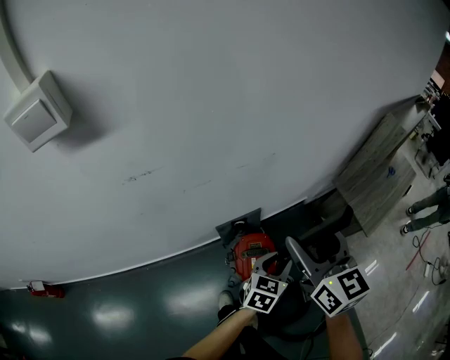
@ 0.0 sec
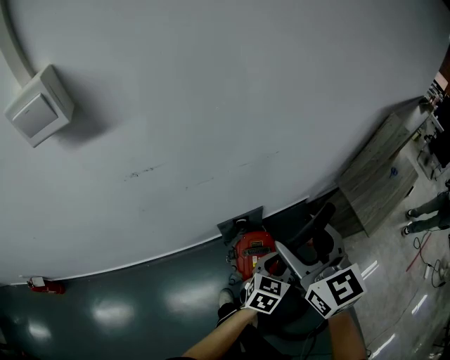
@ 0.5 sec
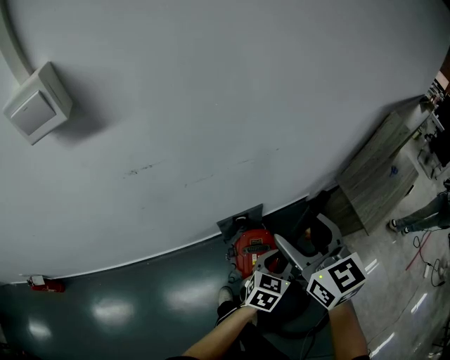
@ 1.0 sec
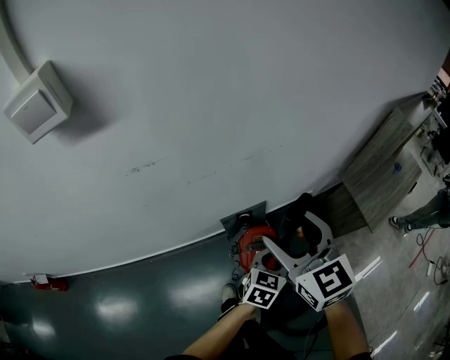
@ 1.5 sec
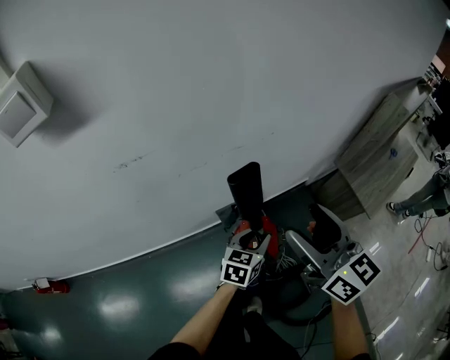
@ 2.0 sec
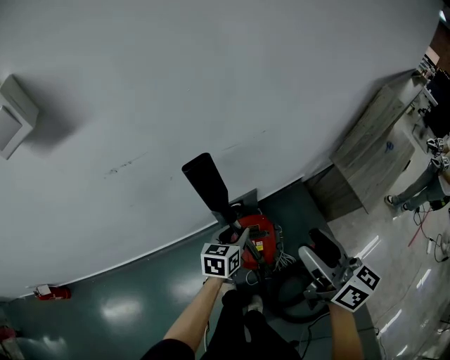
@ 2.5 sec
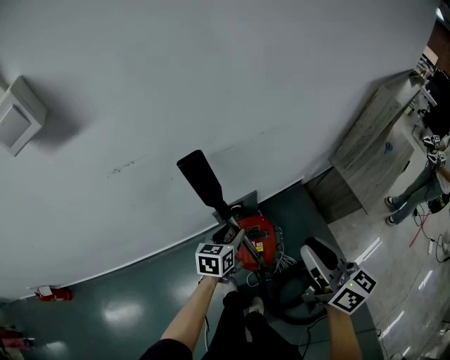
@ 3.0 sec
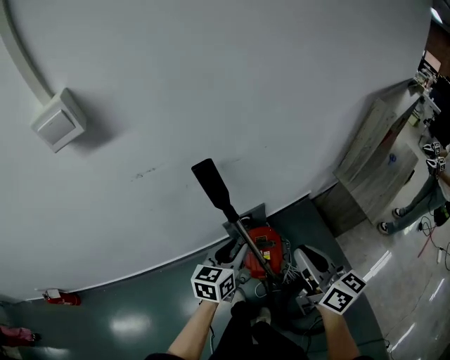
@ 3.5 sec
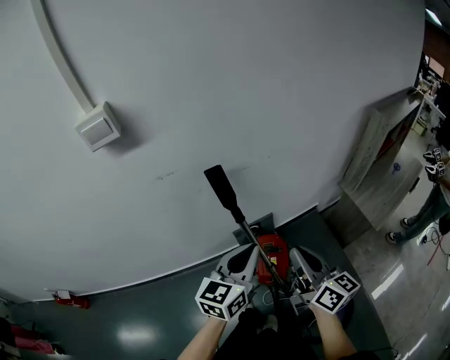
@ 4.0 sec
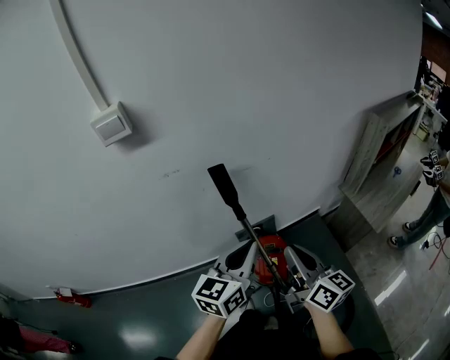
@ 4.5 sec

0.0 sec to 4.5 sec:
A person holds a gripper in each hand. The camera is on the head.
0.0 sec to 2.0 sec: The left gripper goes approximately 5 cm to the left.
2.0 sec to 4.5 sec: The left gripper heads upward and backward, covering roughly 30 cm, swivels approximately 30 degrees, and closes. The right gripper goes some 15 cm backward, turns by about 20 degrees, and closes.

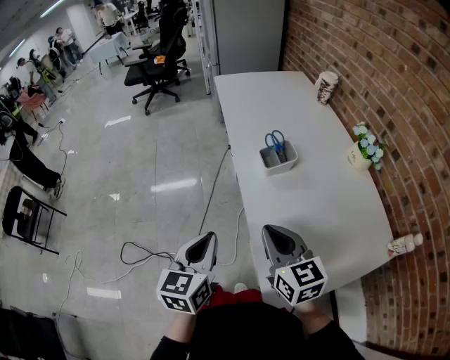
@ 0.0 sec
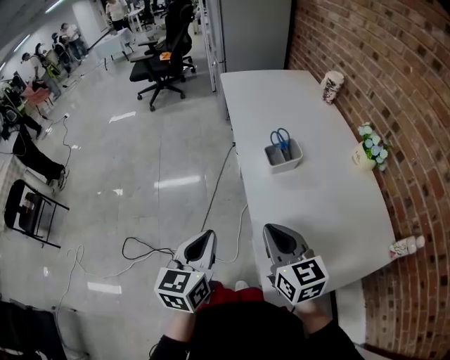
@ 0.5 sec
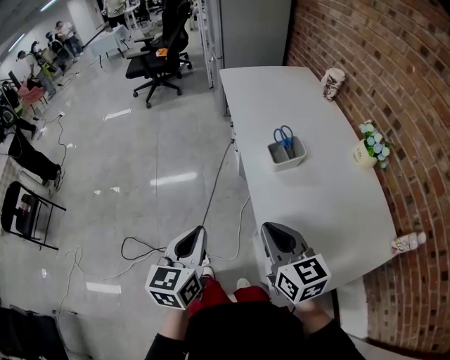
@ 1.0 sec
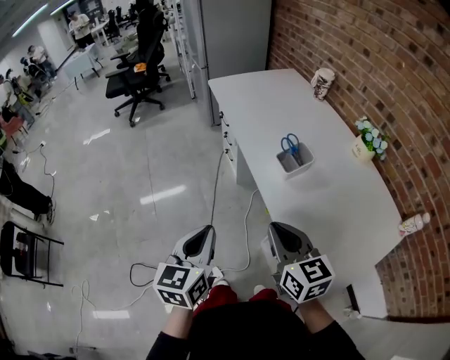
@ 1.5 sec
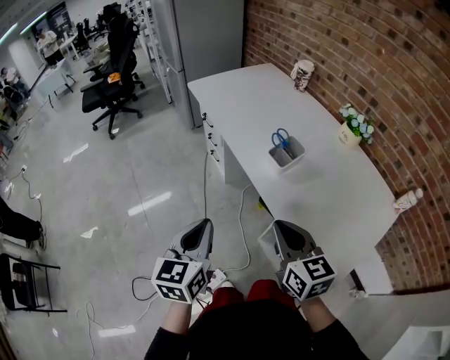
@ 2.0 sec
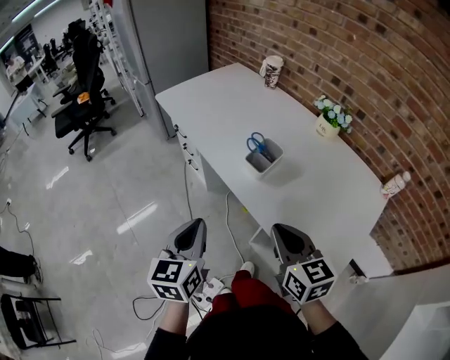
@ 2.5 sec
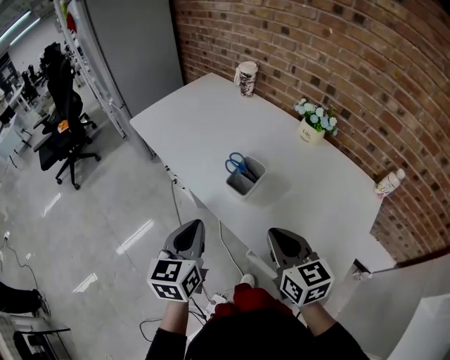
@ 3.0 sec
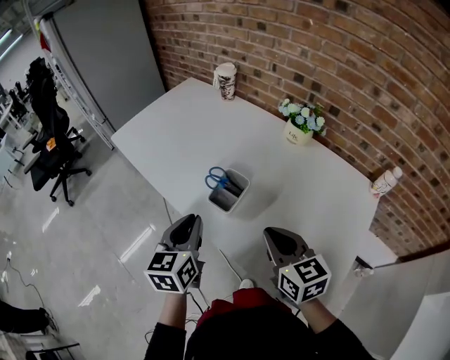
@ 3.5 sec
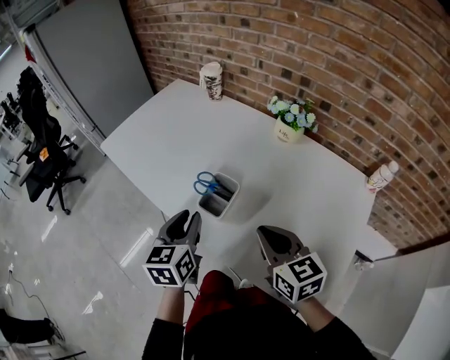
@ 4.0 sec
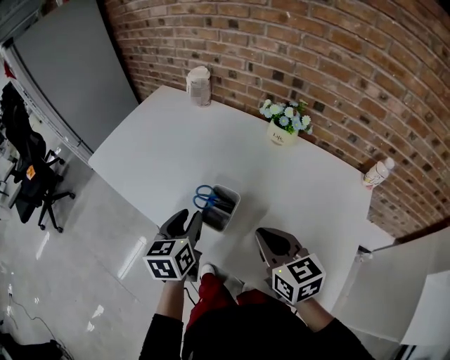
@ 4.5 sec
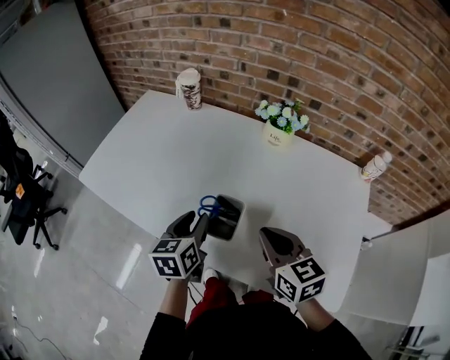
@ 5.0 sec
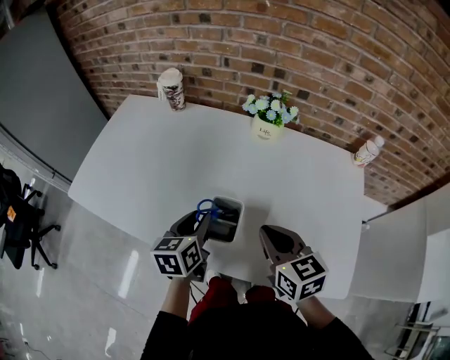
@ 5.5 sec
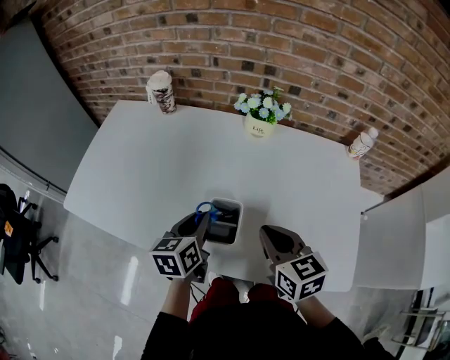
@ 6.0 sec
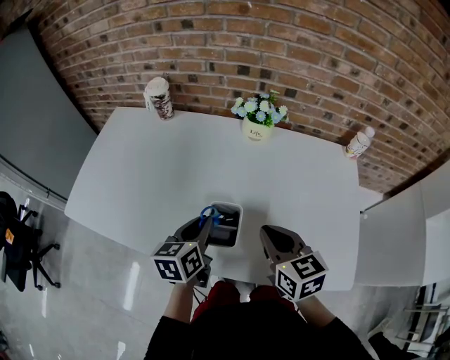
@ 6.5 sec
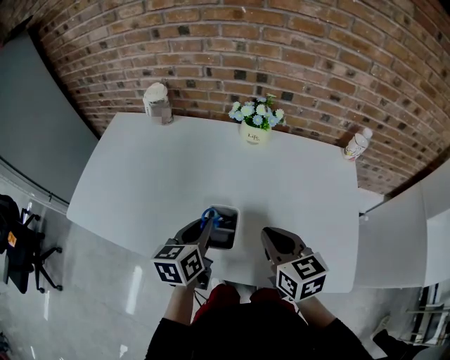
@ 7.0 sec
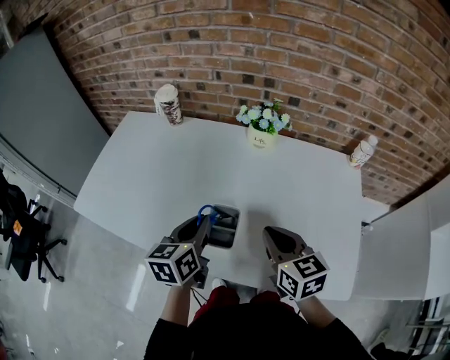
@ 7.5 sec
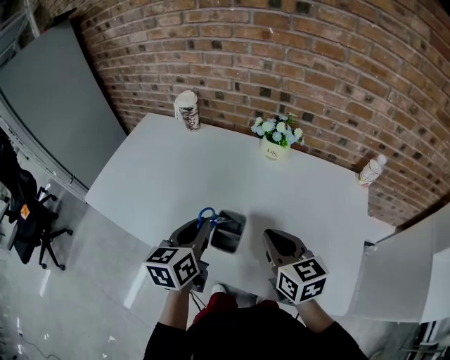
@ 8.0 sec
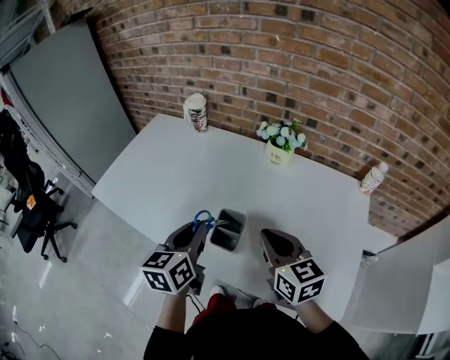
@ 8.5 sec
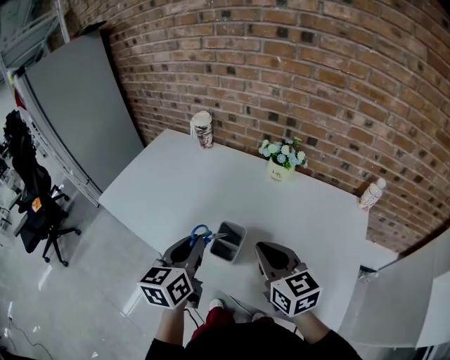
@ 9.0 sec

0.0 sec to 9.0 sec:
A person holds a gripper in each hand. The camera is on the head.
0.0 sec to 2.0 sec: The right gripper moves to the left, approximately 10 cm, and swivels approximately 20 degrees. Meanwhile the left gripper is displaced to the left and forward by some 15 cm.
2.0 sec to 4.5 sec: The left gripper goes some 35 cm forward and to the right, swivels approximately 30 degrees, and opens its fingers; the right gripper is displaced forward and to the right by roughly 20 cm, and rotates approximately 20 degrees.
4.5 sec to 7.0 sec: The left gripper changes place by roughly 5 cm, turns by approximately 30 degrees, and closes up. Meanwhile the right gripper turns by roughly 20 degrees.
7.0 sec to 9.0 sec: The left gripper travels upward and backward by about 10 cm, and changes its angle by roughly 20 degrees, while the right gripper moves upward, approximately 5 cm, and swivels some 20 degrees.

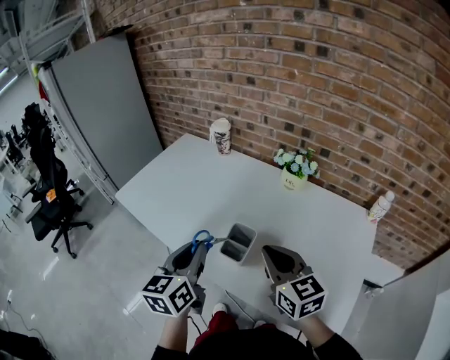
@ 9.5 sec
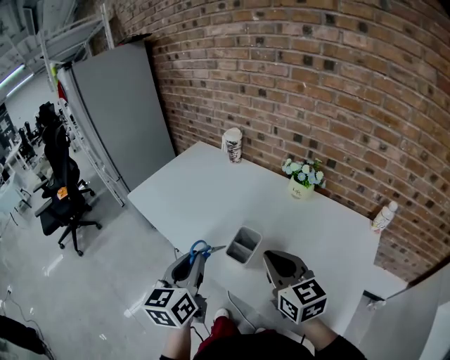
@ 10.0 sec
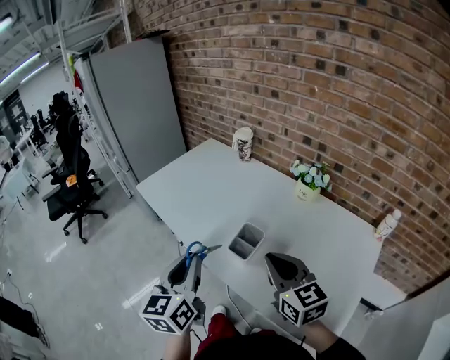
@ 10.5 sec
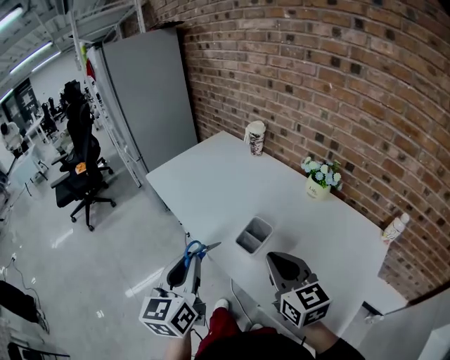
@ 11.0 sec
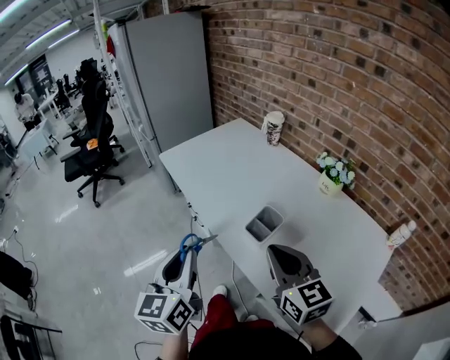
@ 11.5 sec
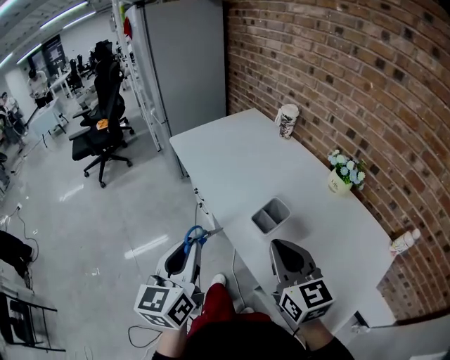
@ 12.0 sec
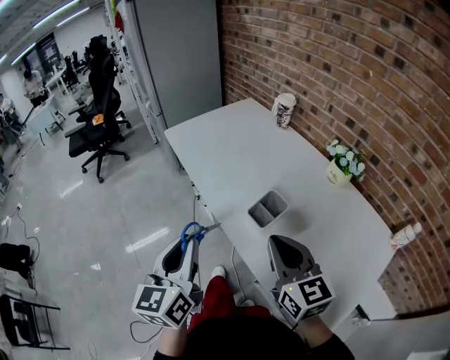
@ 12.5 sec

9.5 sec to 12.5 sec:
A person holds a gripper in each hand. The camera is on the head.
9.5 sec to 11.0 sec: The right gripper moves some 5 cm; the left gripper is displaced backward and to the left by approximately 10 cm, and swivels approximately 20 degrees.
11.0 sec to 12.5 sec: The grippers move only a little.

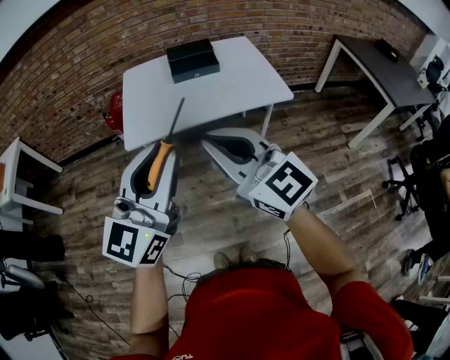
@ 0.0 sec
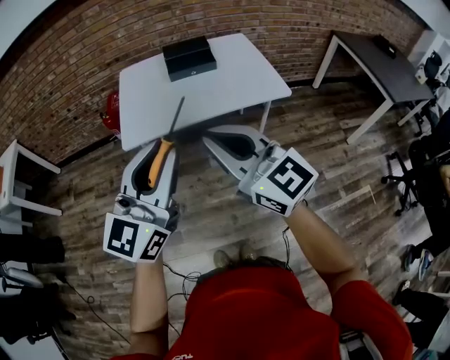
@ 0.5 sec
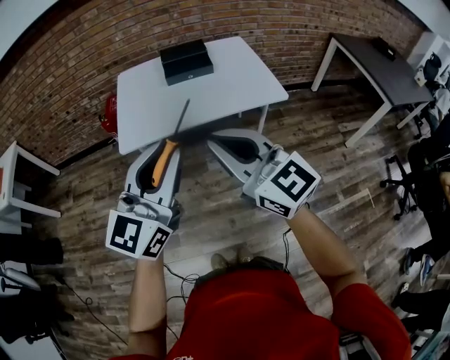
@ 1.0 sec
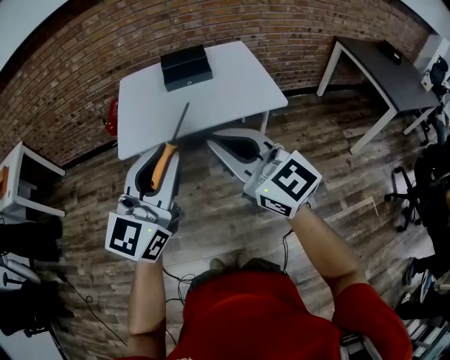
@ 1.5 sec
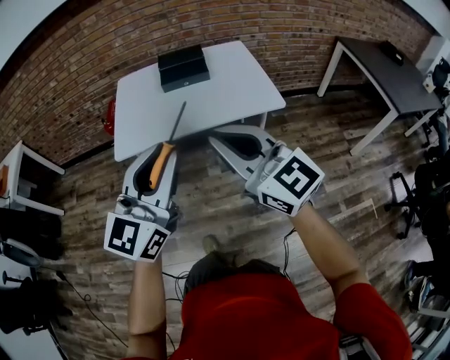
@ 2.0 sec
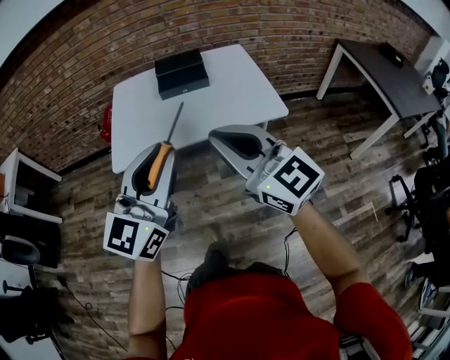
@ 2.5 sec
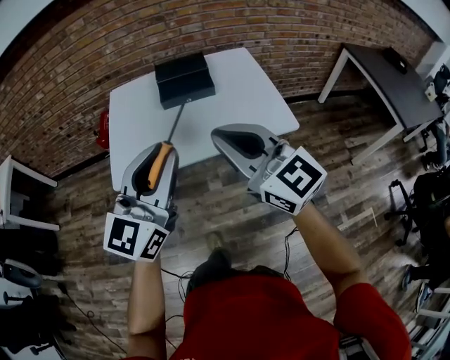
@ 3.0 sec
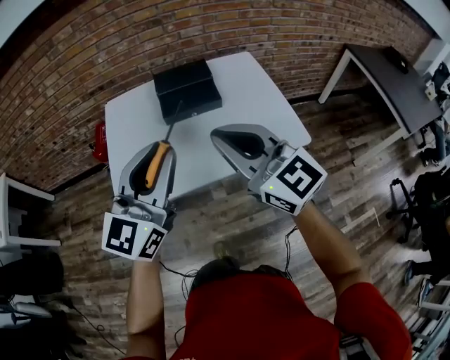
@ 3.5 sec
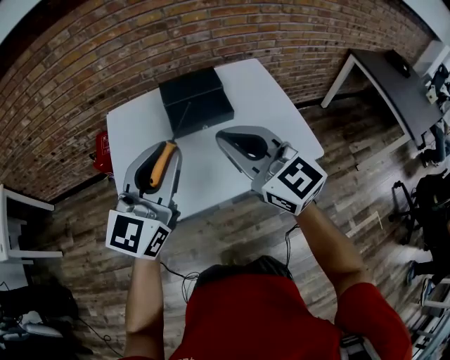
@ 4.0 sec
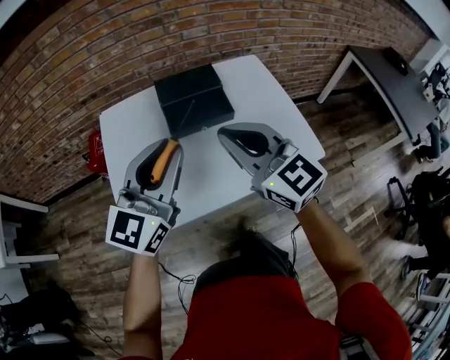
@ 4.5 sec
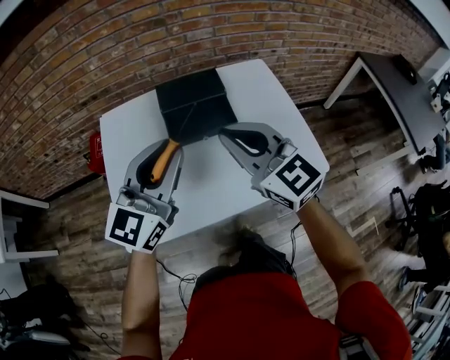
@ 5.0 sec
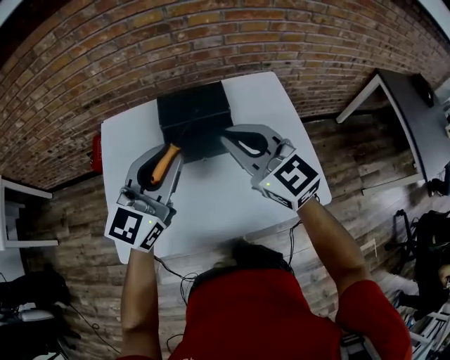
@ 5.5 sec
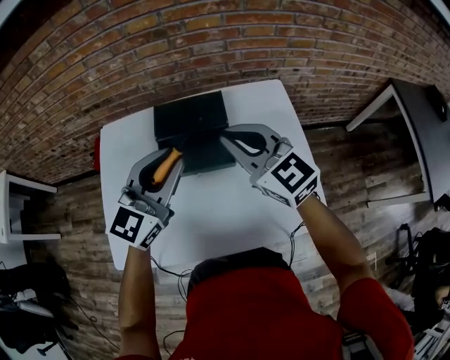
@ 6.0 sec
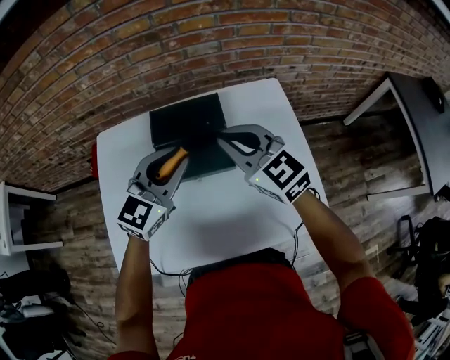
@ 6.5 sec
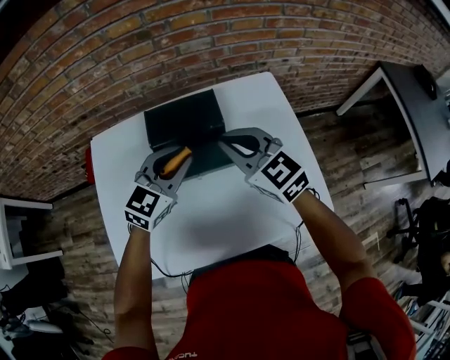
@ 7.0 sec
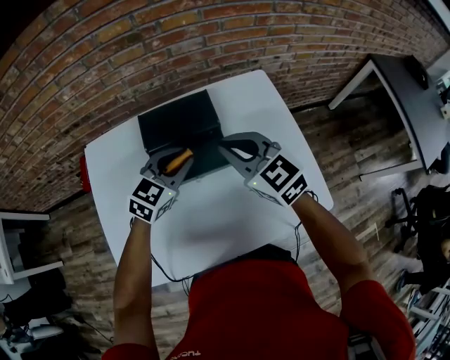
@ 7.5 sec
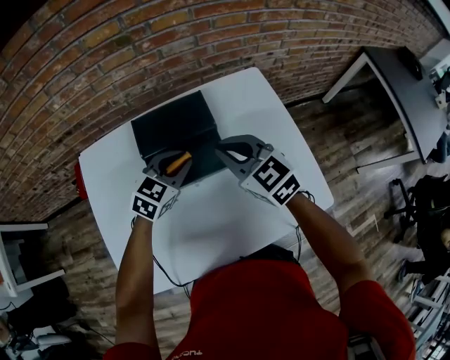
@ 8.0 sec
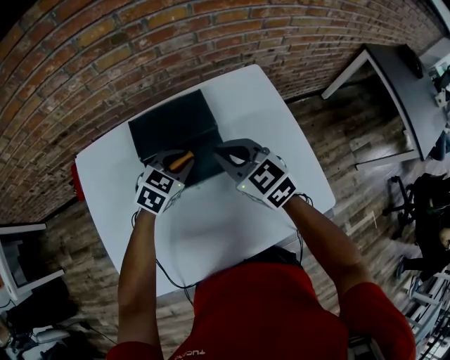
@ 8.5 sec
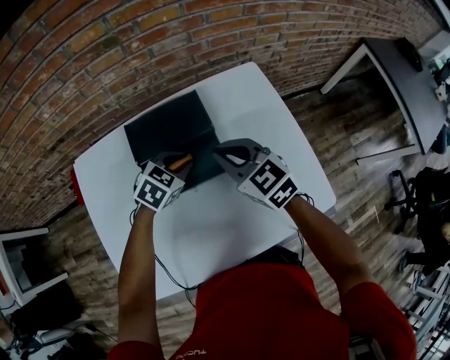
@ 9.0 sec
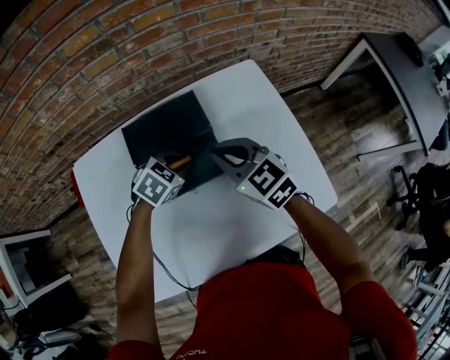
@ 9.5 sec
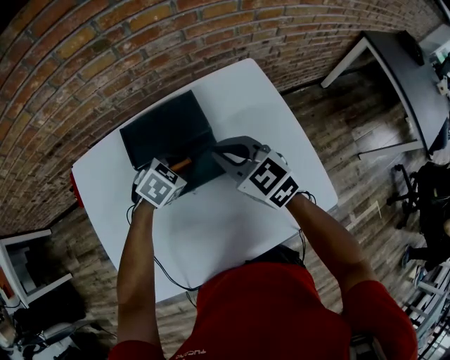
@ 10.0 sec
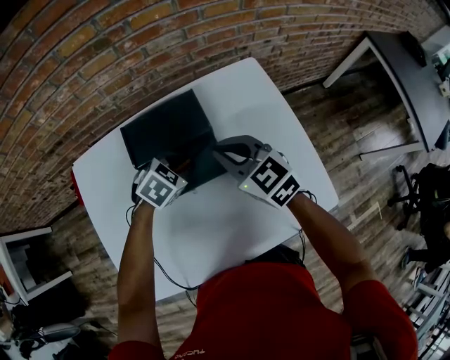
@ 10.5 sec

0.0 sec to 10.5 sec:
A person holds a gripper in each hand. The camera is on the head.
0.0 sec to 2.0 sec: Both grippers travel together to the right, approximately 10 cm.
2.0 sec to 4.0 sec: Both grippers move forward, some 35 cm.
4.0 sec to 6.5 sec: The left gripper travels forward and downward by roughly 30 cm, and rotates approximately 20 degrees. Meanwhile the right gripper travels forward by approximately 25 cm.
6.5 sec to 8.5 sec: The left gripper heads downward, covering approximately 15 cm, and changes its angle by approximately 30 degrees; the right gripper shifts approximately 10 cm downward.
